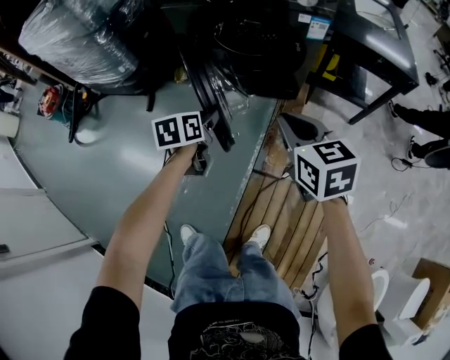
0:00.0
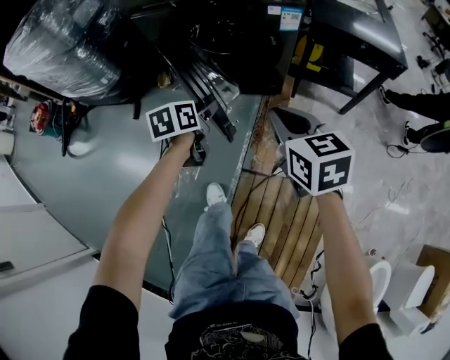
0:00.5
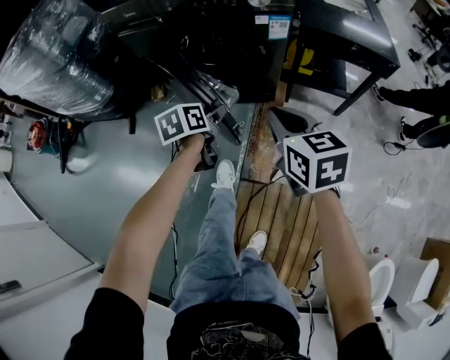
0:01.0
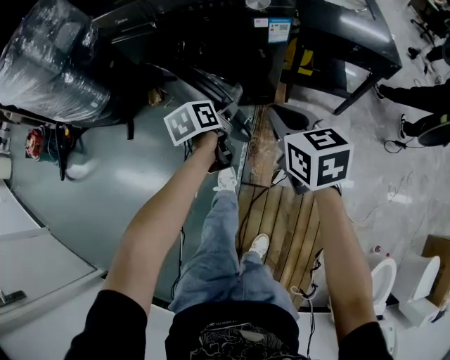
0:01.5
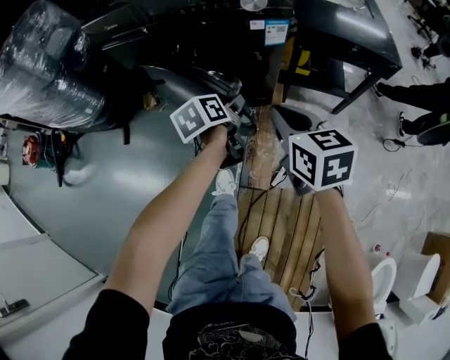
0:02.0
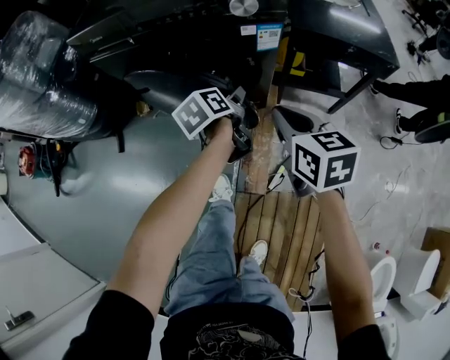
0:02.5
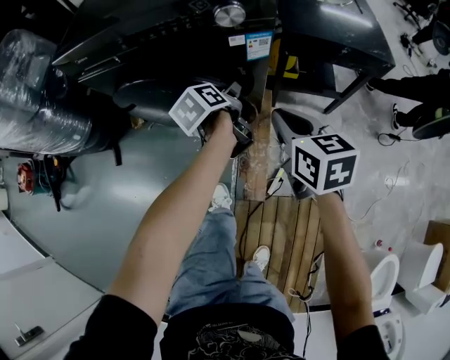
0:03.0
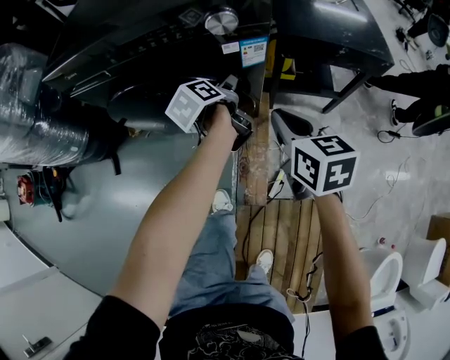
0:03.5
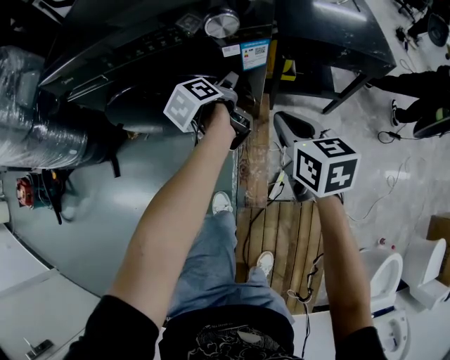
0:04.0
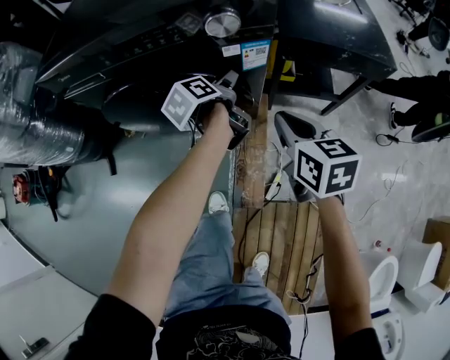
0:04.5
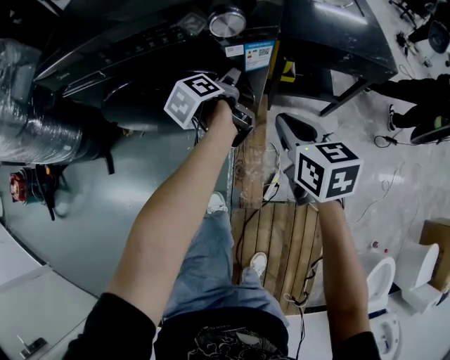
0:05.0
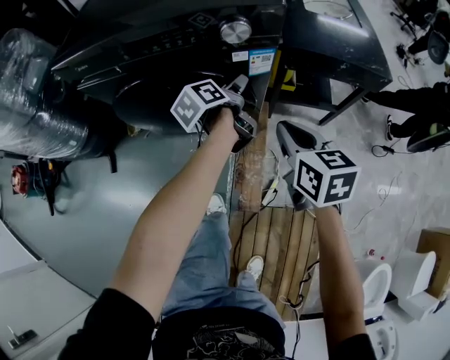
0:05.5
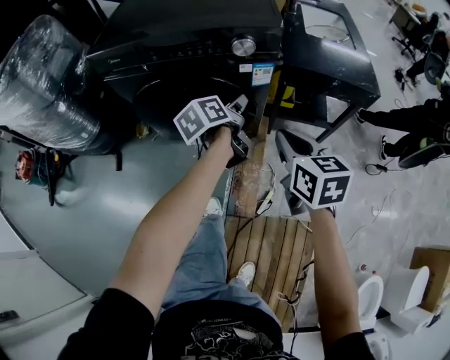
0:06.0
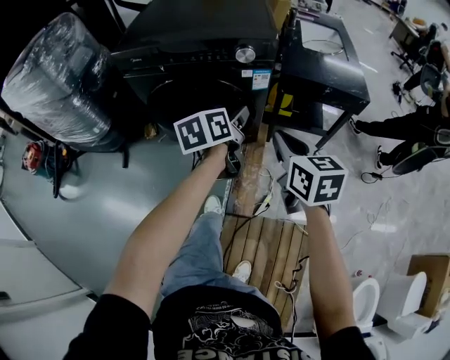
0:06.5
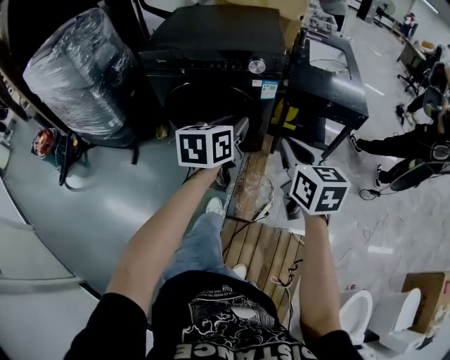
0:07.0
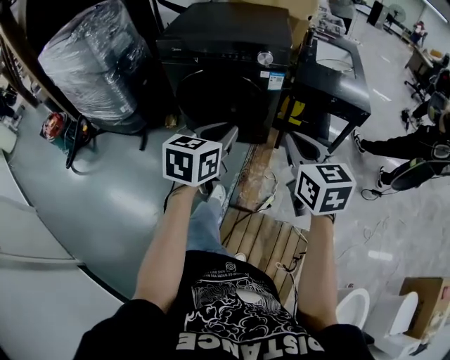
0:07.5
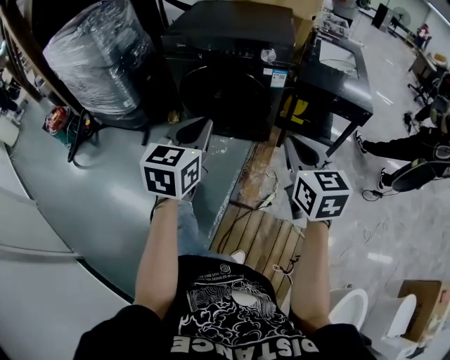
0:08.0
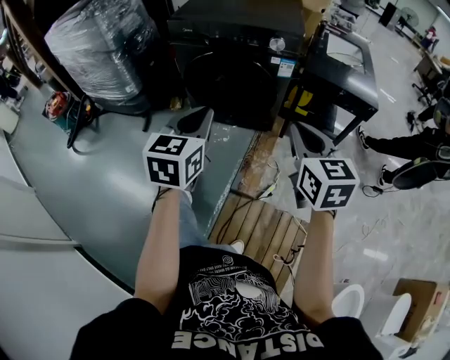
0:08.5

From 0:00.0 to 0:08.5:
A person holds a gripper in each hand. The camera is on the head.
From 0:00.0 to 0:02.0: The right gripper moves forward and to the right, some 15 cm. The left gripper moves to the right and forward, roughly 25 cm.
From 0:02.0 to 0:04.0: The left gripper is displaced forward by some 15 cm; the right gripper travels forward and to the right by approximately 10 cm.
From 0:04.0 to 0:06.5: The two grippers go roughly 25 cm upward and backward. The left gripper changes its angle by approximately 30 degrees, and closes.
From 0:06.5 to 0:08.5: The right gripper heads backward and upward, covering approximately 15 cm. Meanwhile the left gripper moves backward, to the left and upward, approximately 30 cm, changes its angle by about 40 degrees, and closes its fingers.

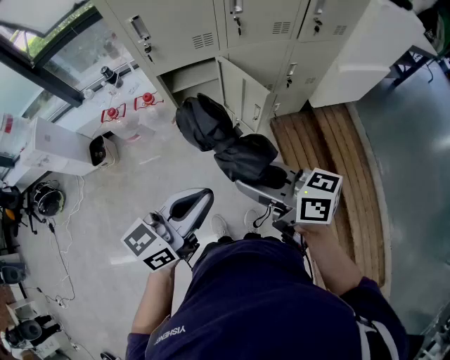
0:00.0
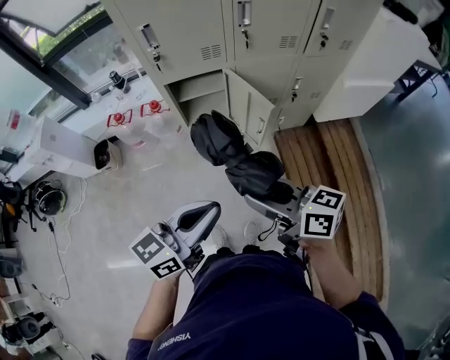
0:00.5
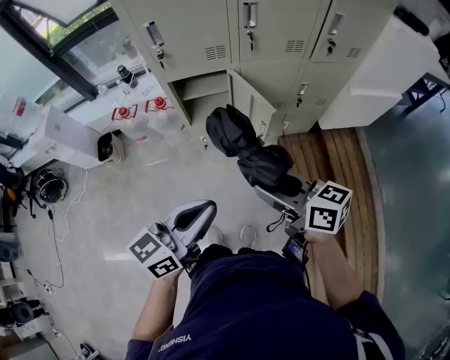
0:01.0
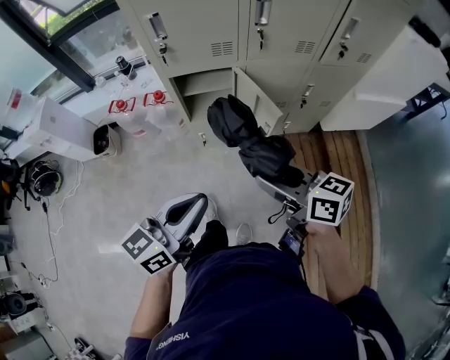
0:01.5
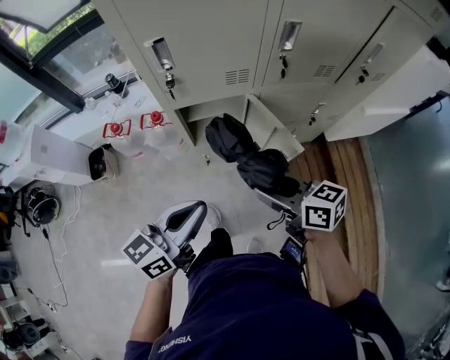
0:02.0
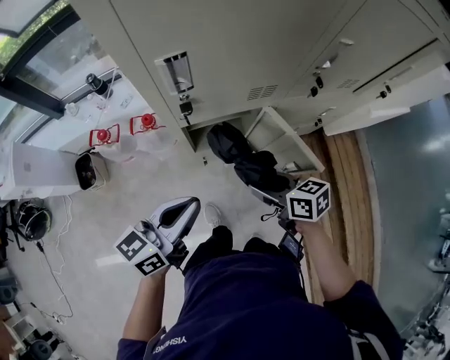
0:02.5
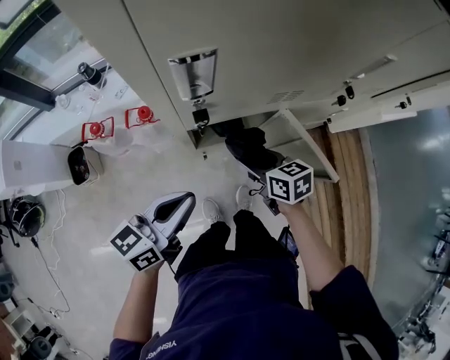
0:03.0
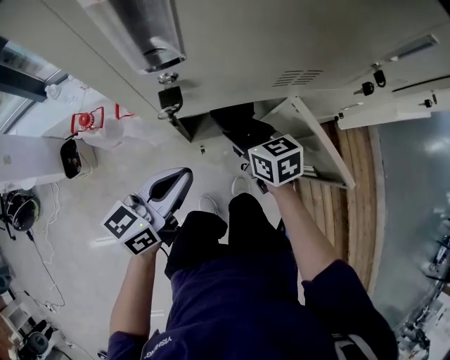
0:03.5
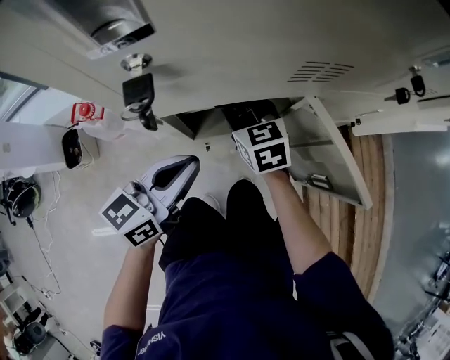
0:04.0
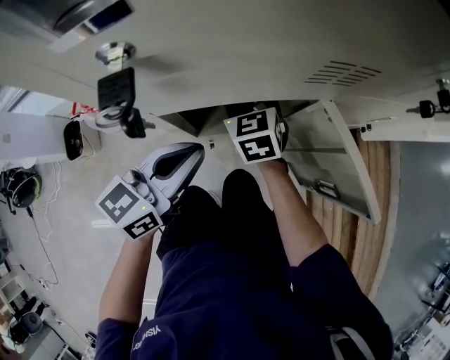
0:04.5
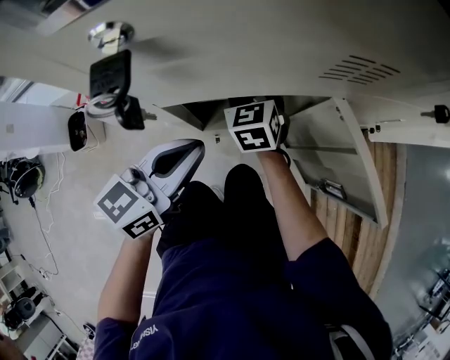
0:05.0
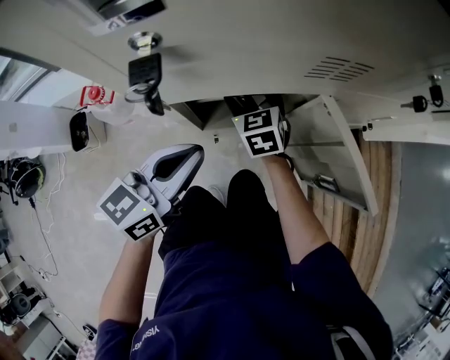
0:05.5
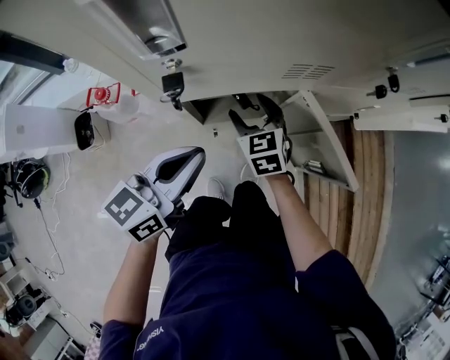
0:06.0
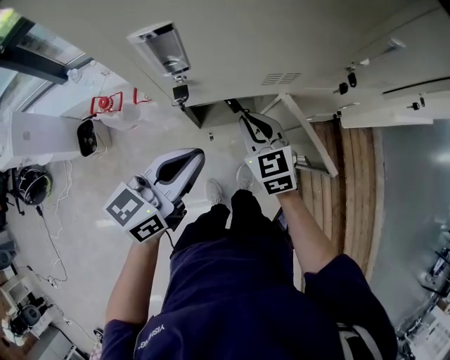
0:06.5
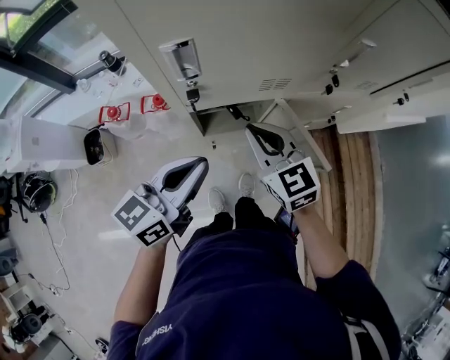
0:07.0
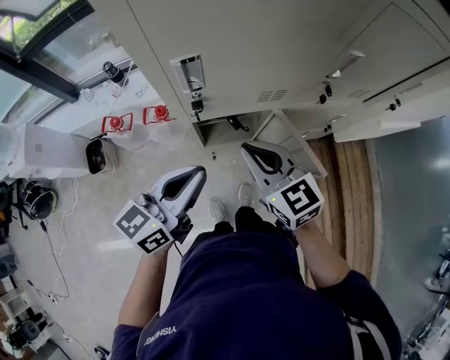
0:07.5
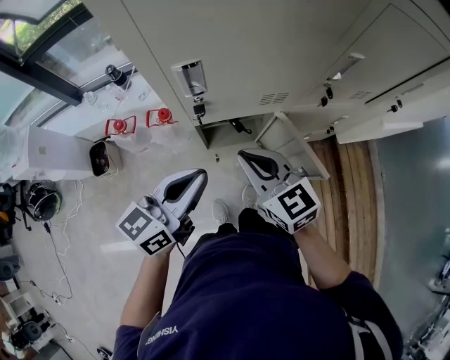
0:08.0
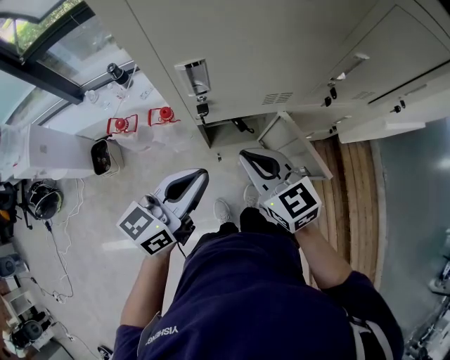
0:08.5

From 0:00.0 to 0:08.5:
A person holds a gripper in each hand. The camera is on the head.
From 0:00.0 to 0:02.0: The left gripper is displaced forward by roughly 15 cm; the right gripper travels forward and downward by some 20 cm.
From 0:02.0 to 0:04.0: Both grippers travel together forward and downward, roughly 35 cm. The right gripper rotates some 40 degrees.
From 0:04.0 to 0:06.5: The left gripper shifts approximately 15 cm upward. Meanwhile the right gripper moves upward and backward, approximately 15 cm, and closes its fingers.
From 0:06.5 to 0:08.5: The left gripper moves roughly 5 cm; the right gripper heads upward and backward, covering approximately 15 cm.

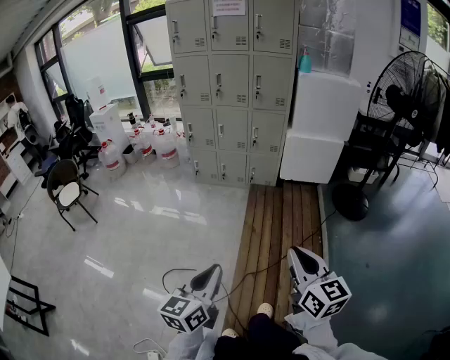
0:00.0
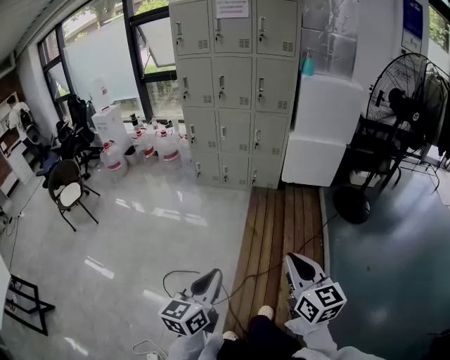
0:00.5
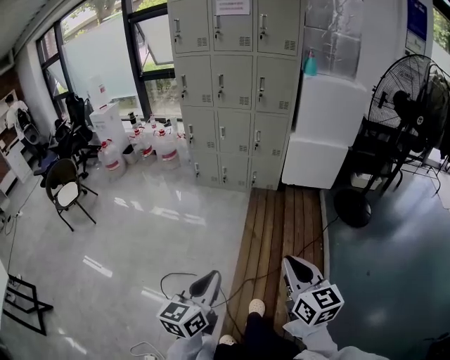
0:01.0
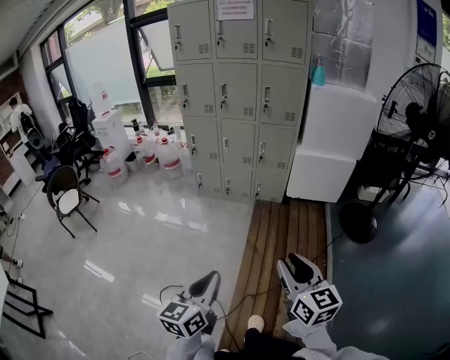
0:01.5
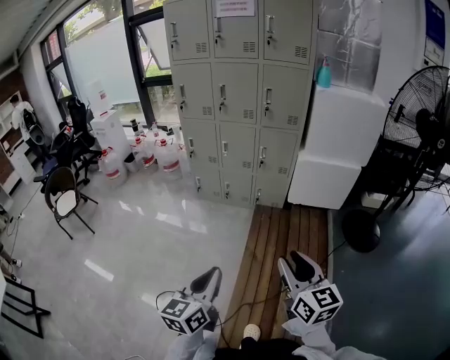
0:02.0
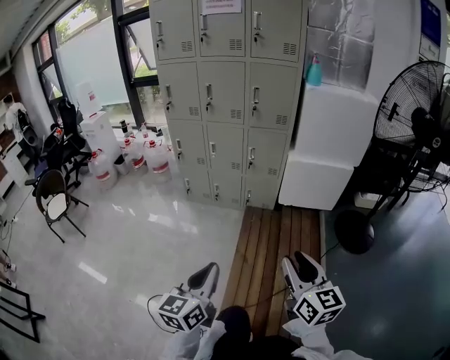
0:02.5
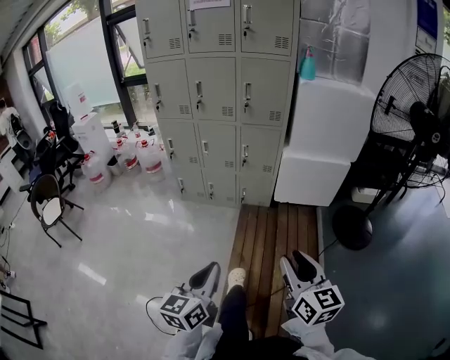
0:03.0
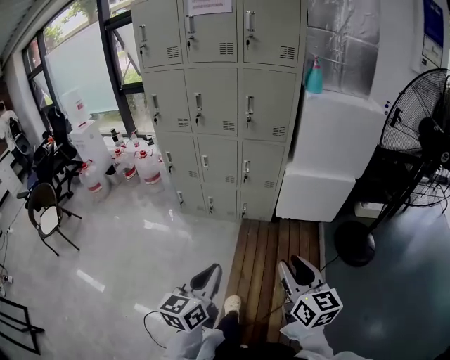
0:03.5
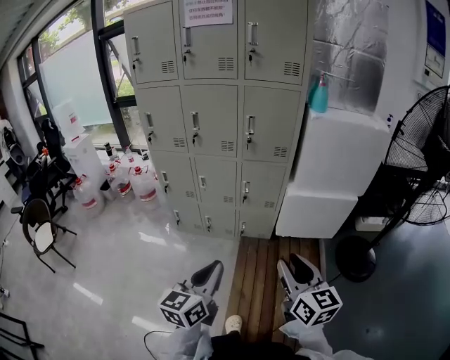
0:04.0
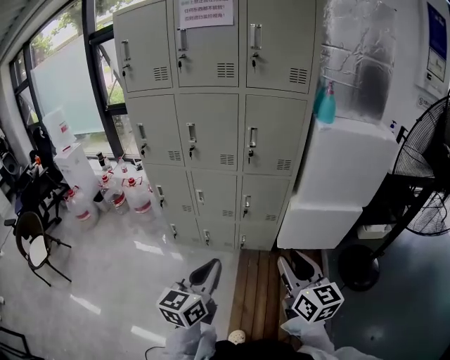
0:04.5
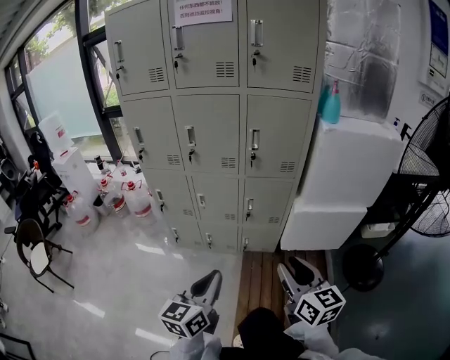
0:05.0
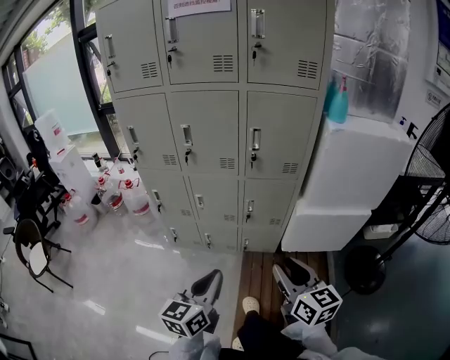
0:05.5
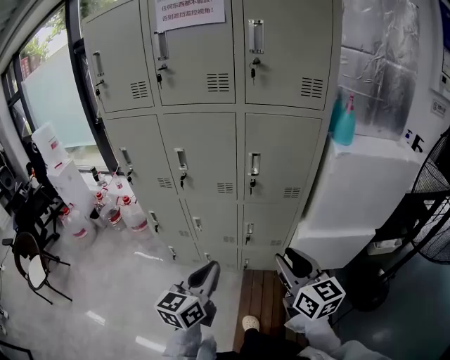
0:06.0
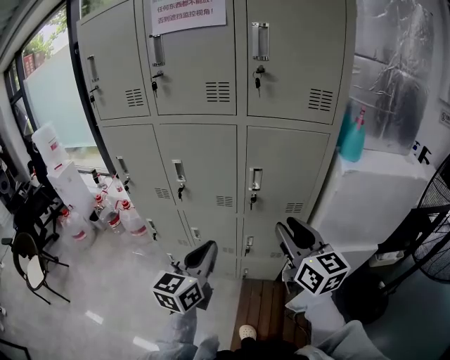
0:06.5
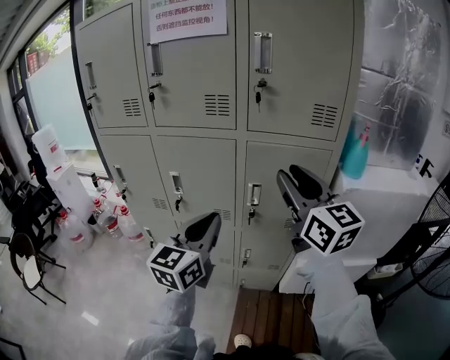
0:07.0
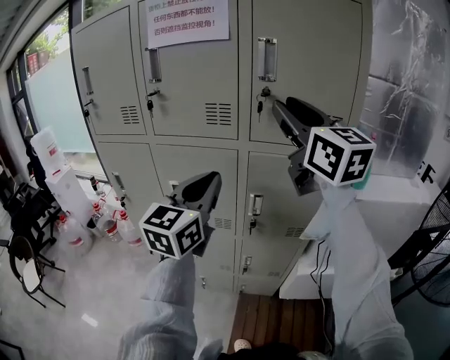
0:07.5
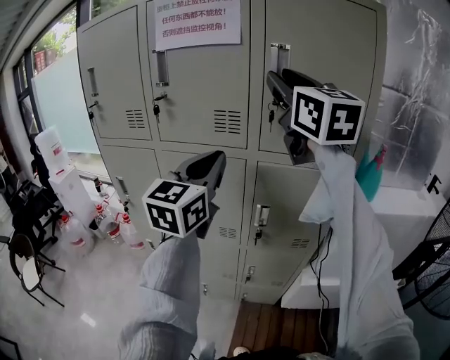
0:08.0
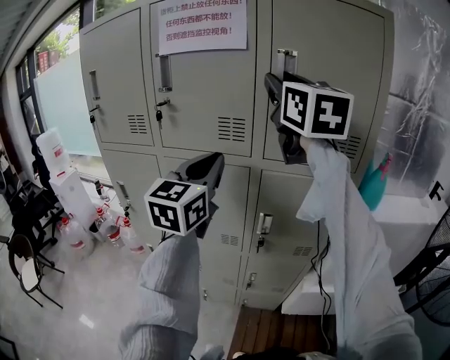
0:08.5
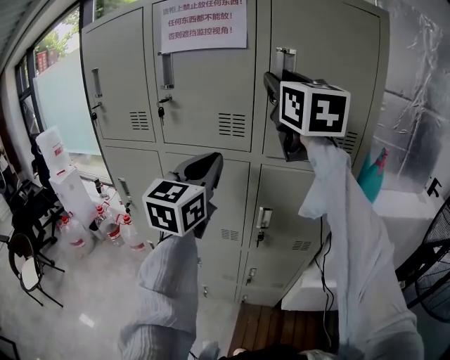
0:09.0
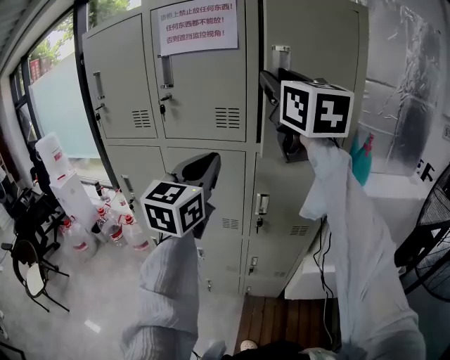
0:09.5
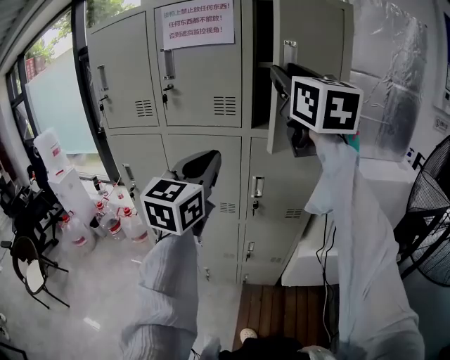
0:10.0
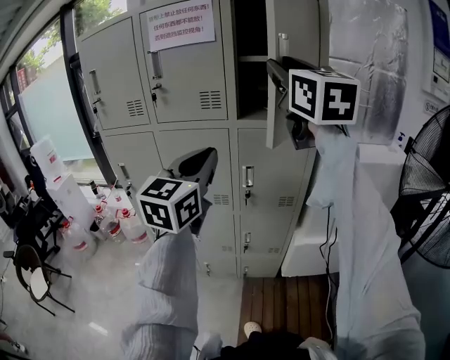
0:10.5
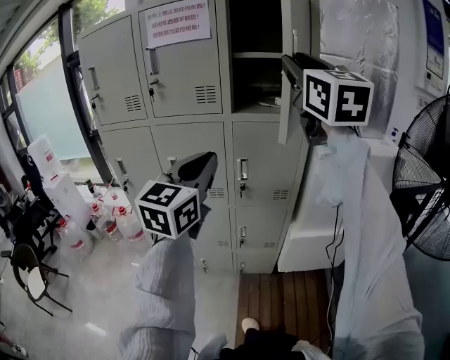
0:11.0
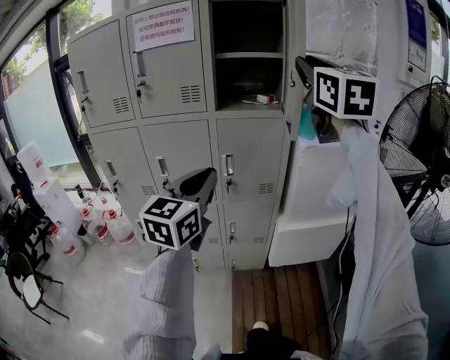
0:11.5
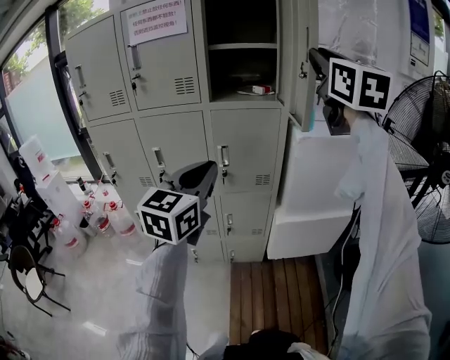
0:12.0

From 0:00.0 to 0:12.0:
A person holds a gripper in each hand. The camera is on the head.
From 0:00.0 to 0:02.0: The grippers both shift forward by roughly 20 cm. The right gripper opens.
From 0:02.0 to 0:04.0: Both grippers travel together forward, about 30 cm.
From 0:04.0 to 0:06.0: Both grippers move forward, about 30 cm.
From 0:06.0 to 0:08.0: Both grippers travel together upward and forward, about 50 cm. The left gripper rotates roughly 30 degrees, while the right gripper swivels about 30 degrees.
From 0:08.0 to 0:10.0: The grippers both shift backward by some 10 cm.
From 0:10.0 to 0:12.0: The right gripper moves to the right and backward, about 25 cm. The left gripper shifts about 15 cm to the right, backward and downward.
